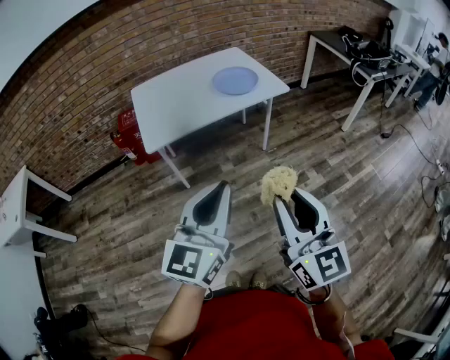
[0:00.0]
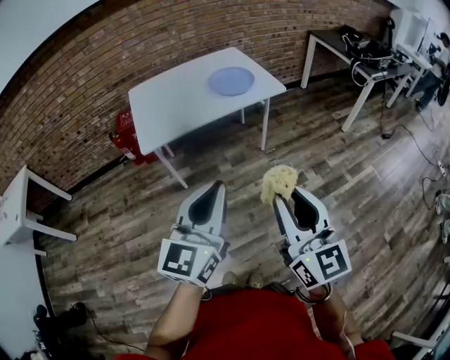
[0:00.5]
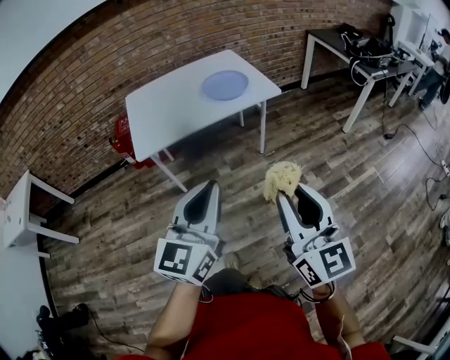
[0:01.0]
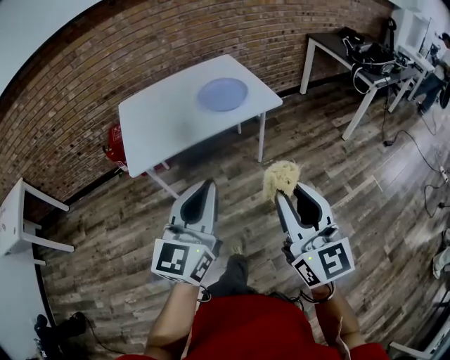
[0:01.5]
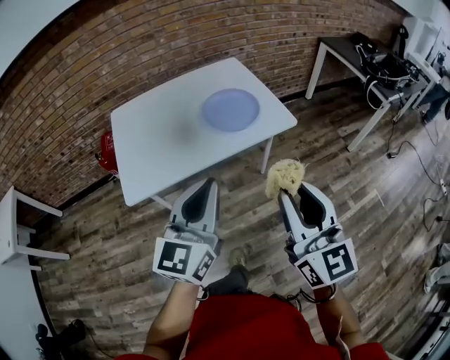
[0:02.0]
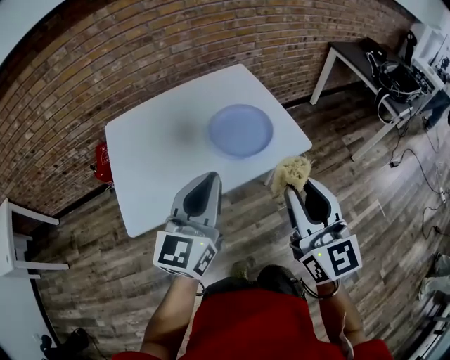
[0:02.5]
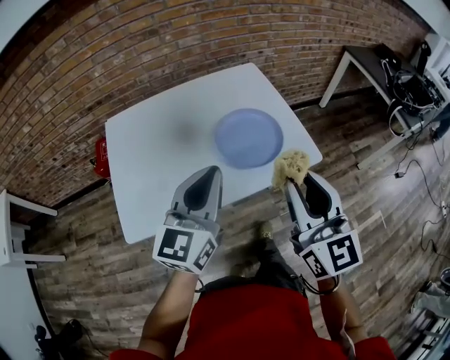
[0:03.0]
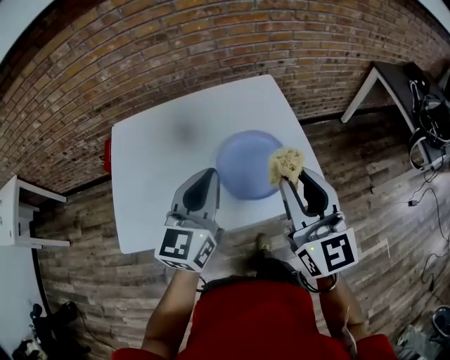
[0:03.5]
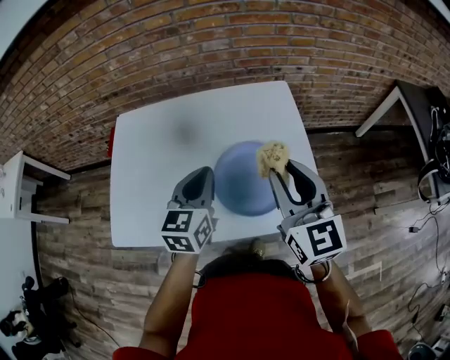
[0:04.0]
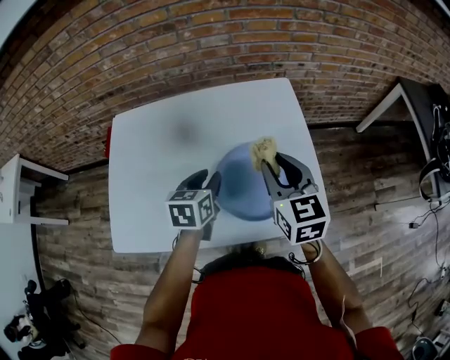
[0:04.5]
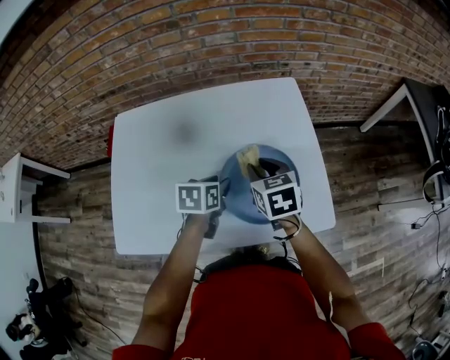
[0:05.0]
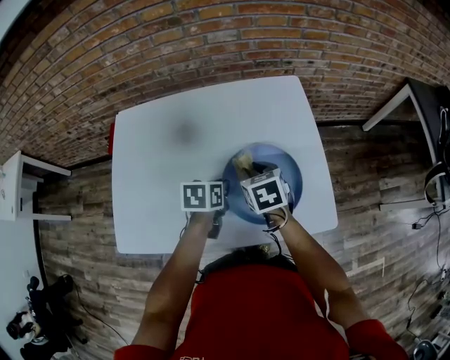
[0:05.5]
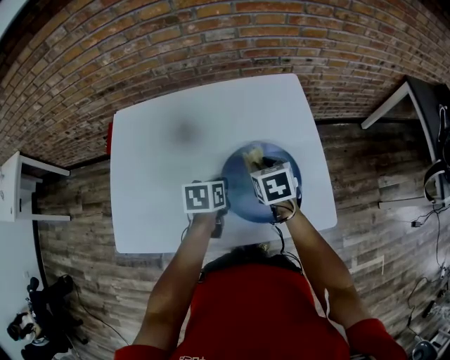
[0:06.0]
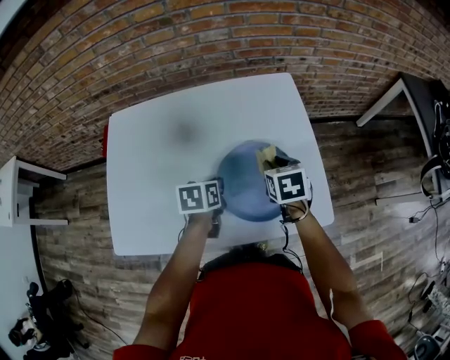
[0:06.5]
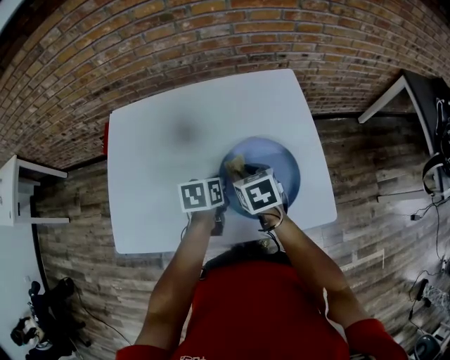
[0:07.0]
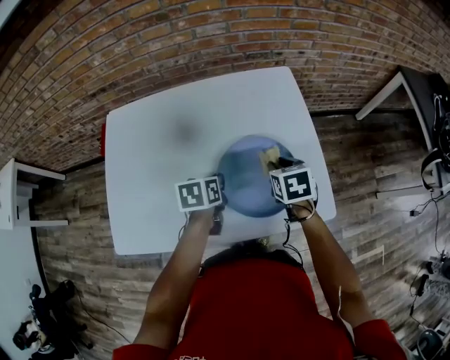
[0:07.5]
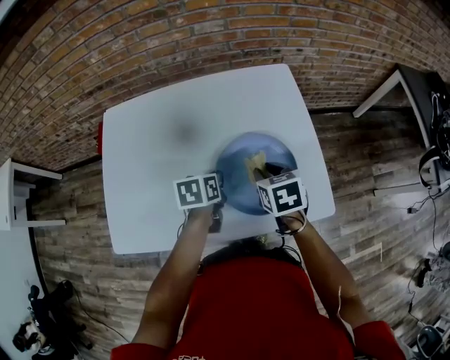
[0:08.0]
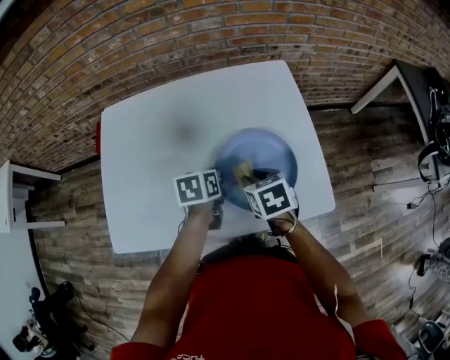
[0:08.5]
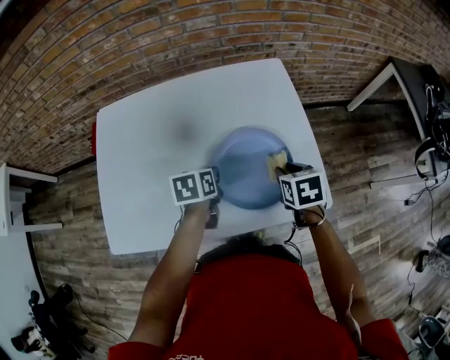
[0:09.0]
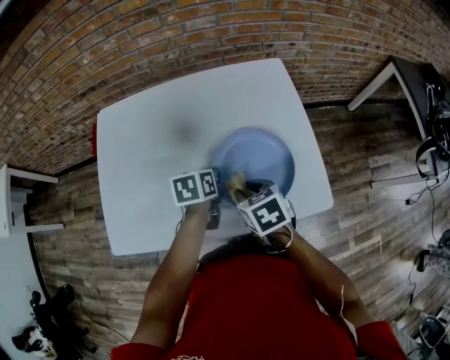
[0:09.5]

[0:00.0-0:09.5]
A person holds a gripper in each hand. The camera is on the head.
0:00.0 to 0:02.0: Both grippers travel together forward, about 30 cm.
0:02.0 to 0:04.0: The pair of grippers is taken forward, roughly 50 cm. The right gripper changes its angle by roughly 20 degrees. Meanwhile the left gripper rotates roughly 30 degrees.
0:04.0 to 0:05.5: The left gripper goes some 20 cm downward, tips its fingers downward by approximately 30 degrees, and opens and closes again; the right gripper shifts about 25 cm downward, to the left and forward, and points its fingers some 40 degrees further downward.
0:05.5 to 0:07.5: The right gripper goes left and right, roughly 10 cm each way, reversing 2 times.
0:07.5 to 0:09.5: The right gripper goes left and right, approximately 15 cm each way, reversing 2 times.

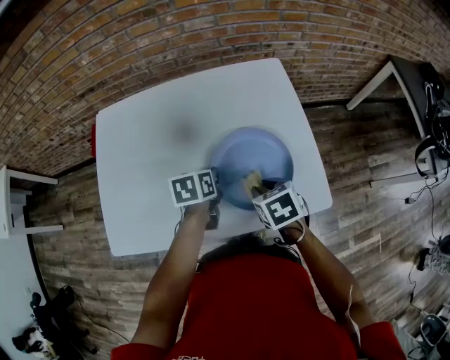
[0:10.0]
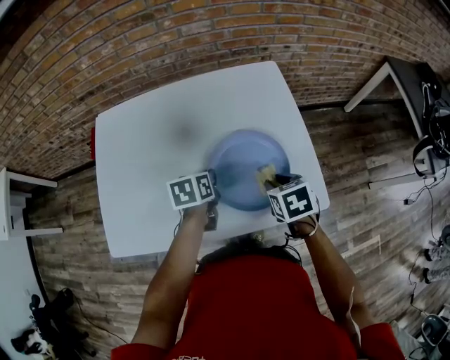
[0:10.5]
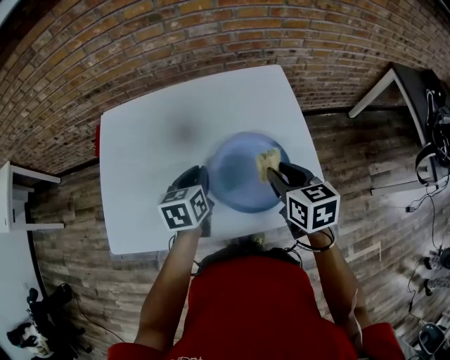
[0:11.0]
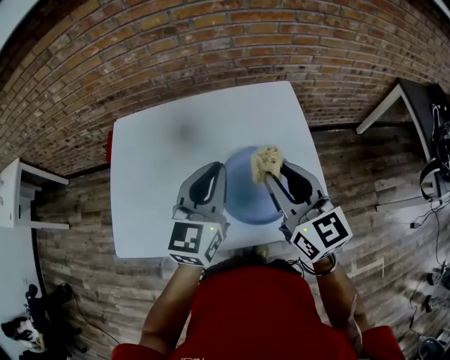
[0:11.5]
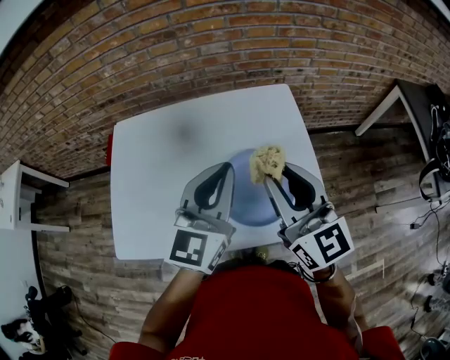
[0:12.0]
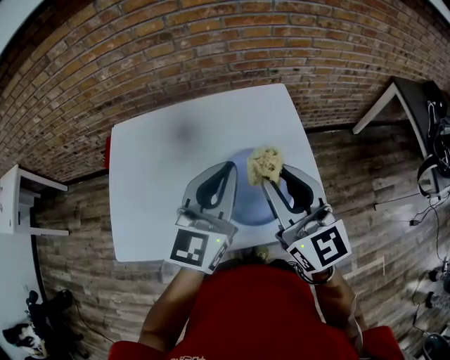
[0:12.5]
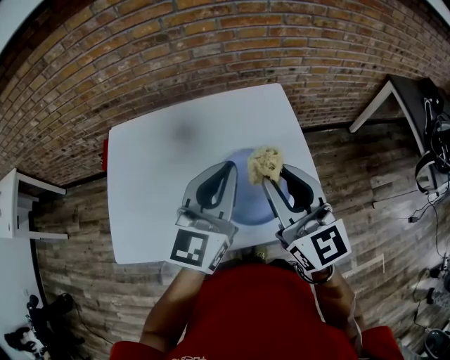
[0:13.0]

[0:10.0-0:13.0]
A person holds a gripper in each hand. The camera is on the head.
0:10.0 to 0:11.5: Both grippers move upward, some 25 cm. The left gripper tilts its fingers some 40 degrees upward. Meanwhile the right gripper points its fingers approximately 60 degrees further upward.
0:11.5 to 0:13.0: The left gripper ends up about 5 cm from where it was, while the right gripper moves some 5 cm.

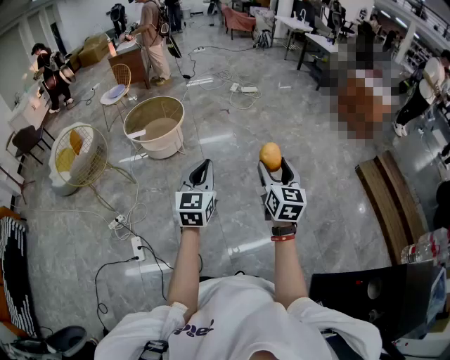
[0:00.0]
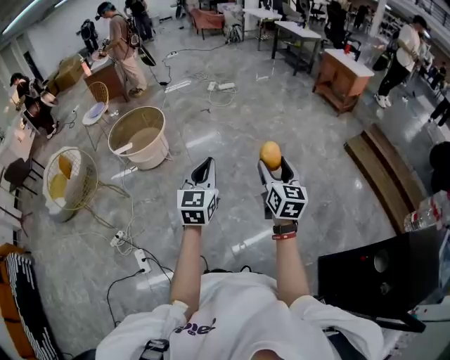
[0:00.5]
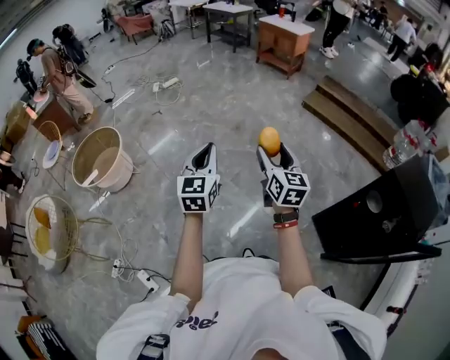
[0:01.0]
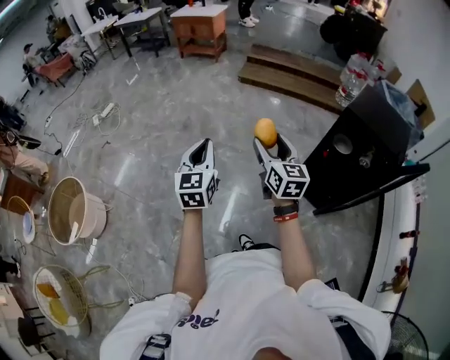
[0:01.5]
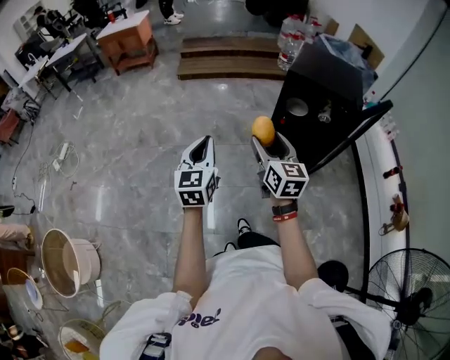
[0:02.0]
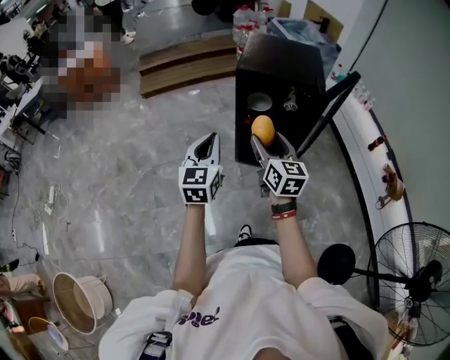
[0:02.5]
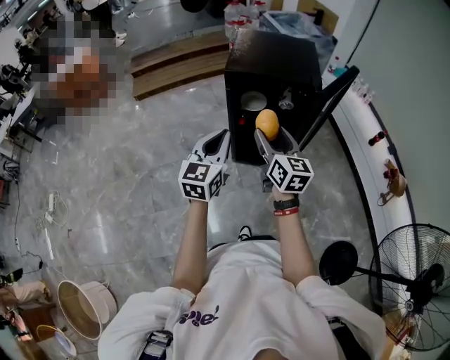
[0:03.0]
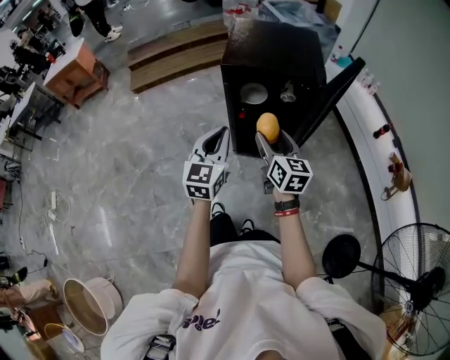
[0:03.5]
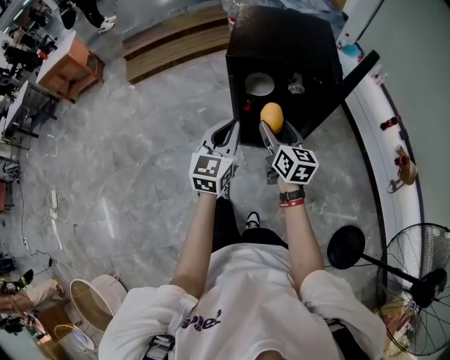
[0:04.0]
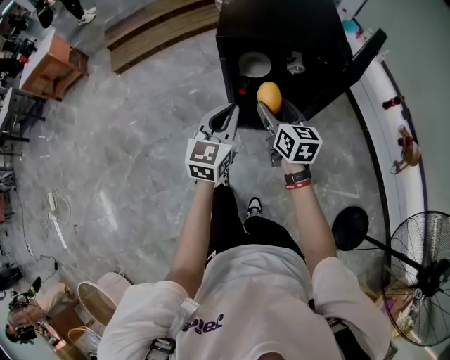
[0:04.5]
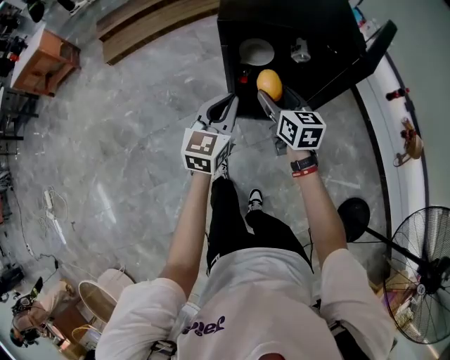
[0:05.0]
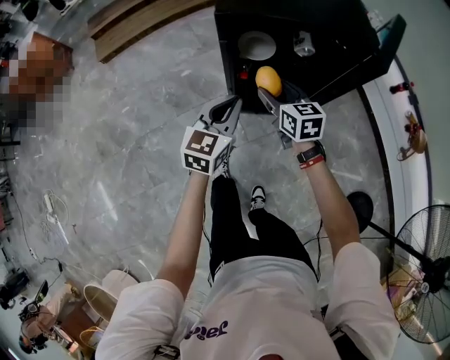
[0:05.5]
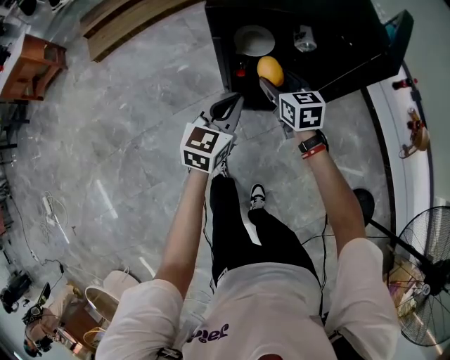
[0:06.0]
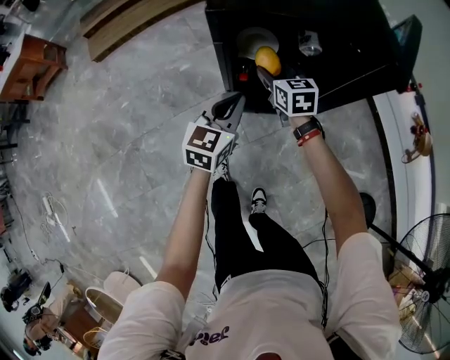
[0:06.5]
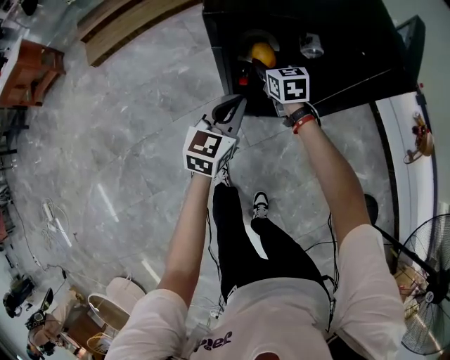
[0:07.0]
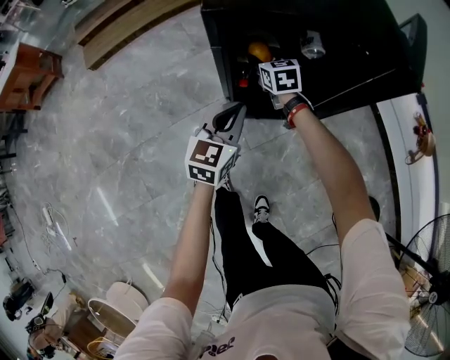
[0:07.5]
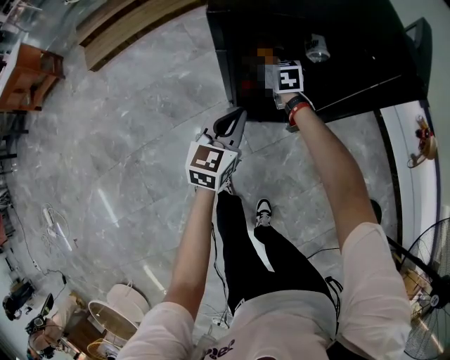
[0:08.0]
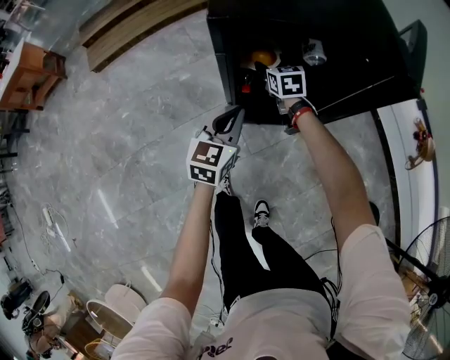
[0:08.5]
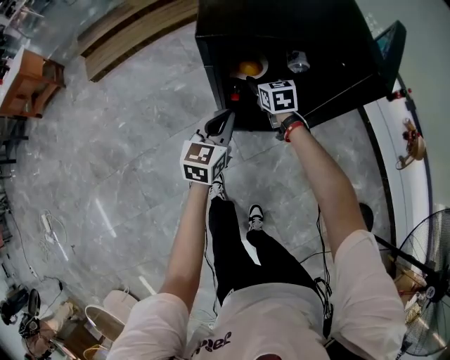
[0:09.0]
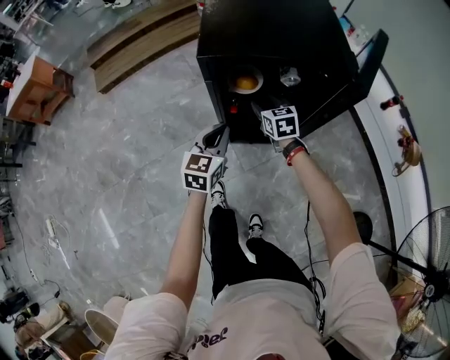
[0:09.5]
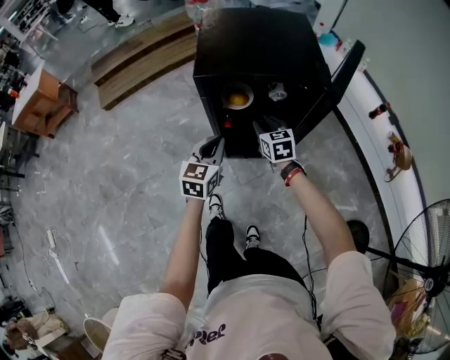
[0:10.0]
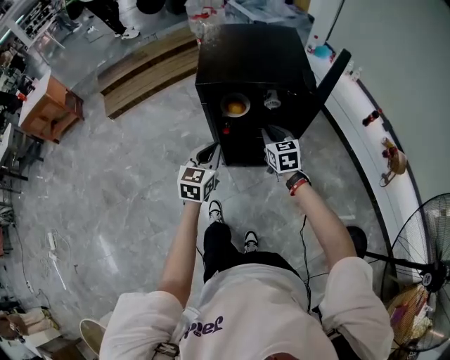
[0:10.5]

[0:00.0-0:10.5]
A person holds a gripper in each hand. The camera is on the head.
0:00.0 to 0:02.0: The two grippers travel together, approximately 50 cm. The right gripper rotates roughly 70 degrees; the left gripper swivels about 70 degrees.
0:02.0 to 0:04.0: The left gripper goes roughly 40 cm forward and to the right, and swivels some 30 degrees. Meanwhile the right gripper heads forward, to the right and downward, covering approximately 35 cm, and swivels approximately 20 degrees.
0:04.0 to 0:06.5: The right gripper heads forward and downward, covering approximately 35 cm, and rotates some 20 degrees. Meanwhile the left gripper moves downward and forward, roughly 25 cm.
0:06.5 to 0:08.5: The right gripper is displaced forward and downward by some 10 cm.
0:08.5 to 0:10.5: The left gripper moves upward and backward, about 20 cm. The right gripper moves backward, upward and to the right, roughly 35 cm, and closes up.

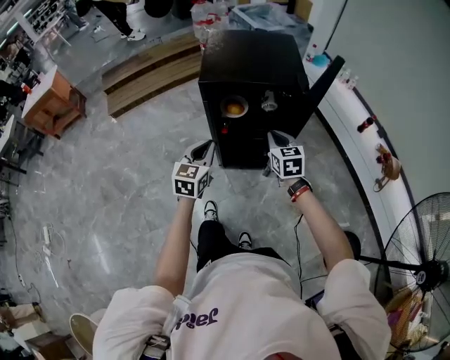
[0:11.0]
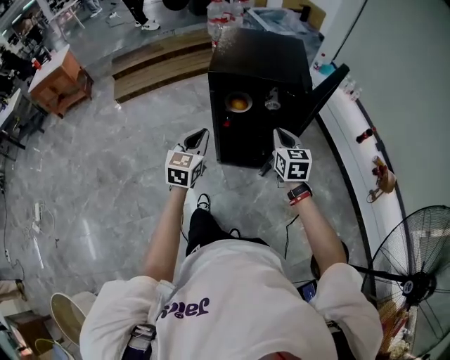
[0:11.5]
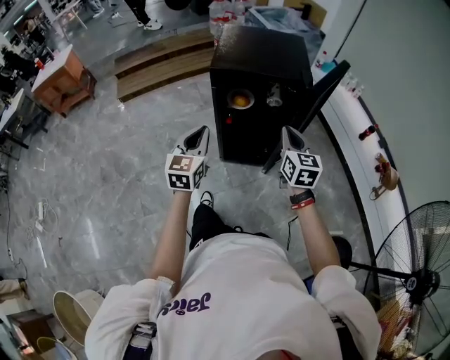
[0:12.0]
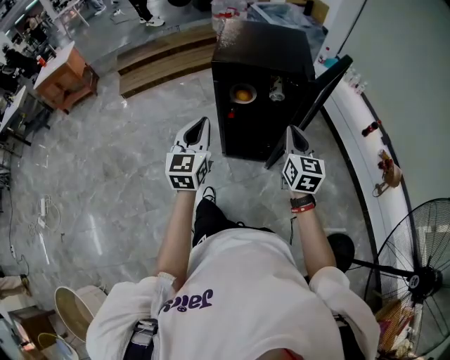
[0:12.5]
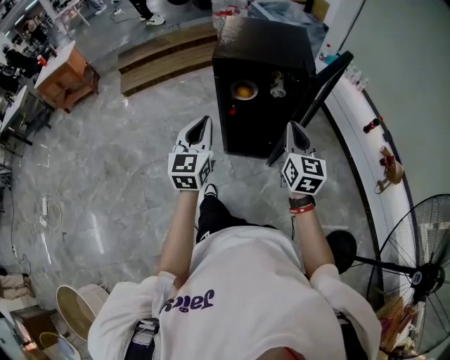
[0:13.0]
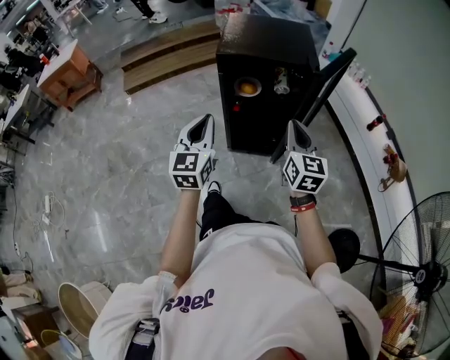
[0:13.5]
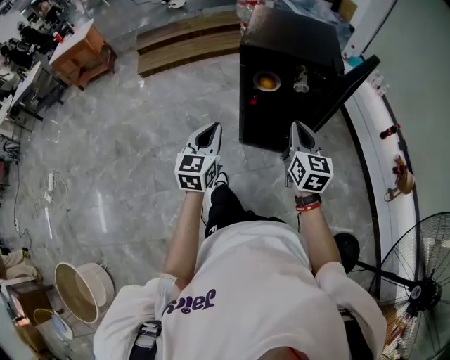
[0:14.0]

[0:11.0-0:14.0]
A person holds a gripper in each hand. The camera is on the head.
0:11.0 to 0:12.5: The right gripper moves backward and upward, some 15 cm, while the left gripper shifts about 15 cm upward and backward.
0:12.5 to 0:14.0: The right gripper is displaced to the left by some 5 cm. The left gripper moves downward, about 5 cm.
